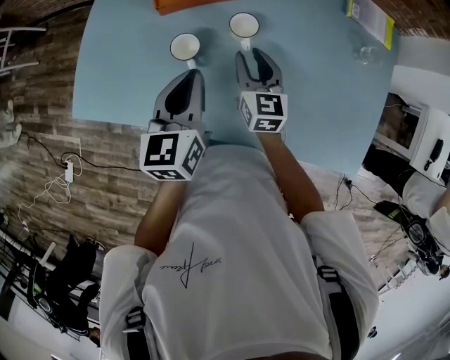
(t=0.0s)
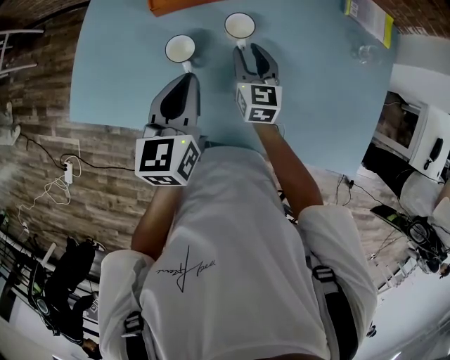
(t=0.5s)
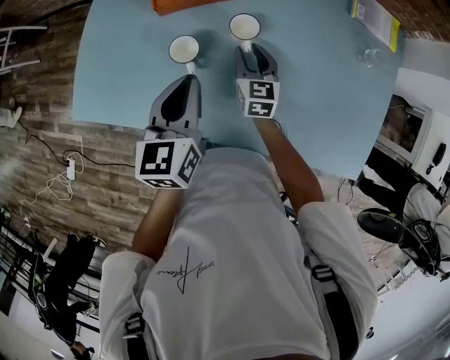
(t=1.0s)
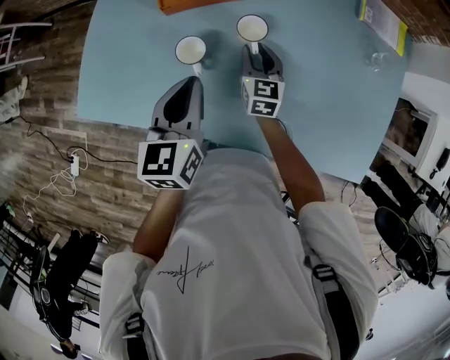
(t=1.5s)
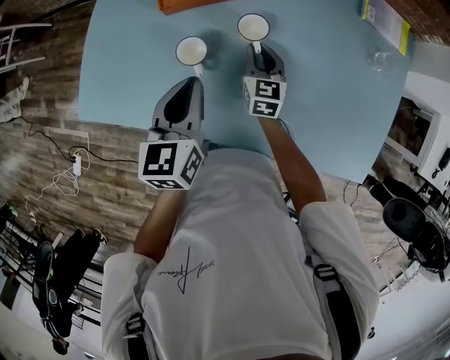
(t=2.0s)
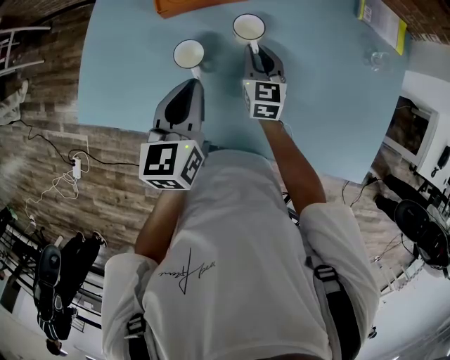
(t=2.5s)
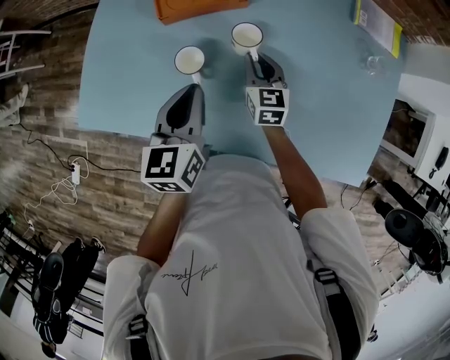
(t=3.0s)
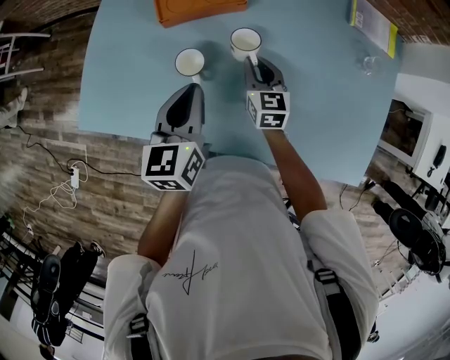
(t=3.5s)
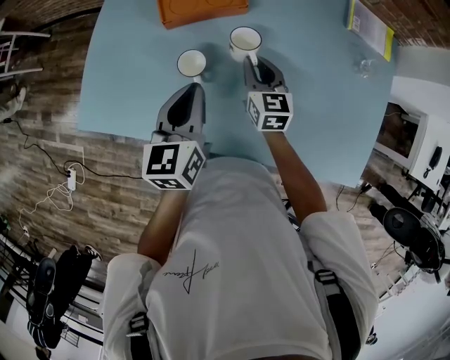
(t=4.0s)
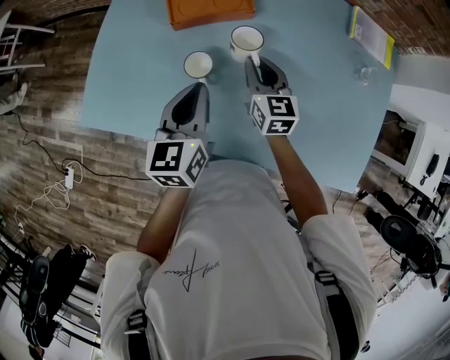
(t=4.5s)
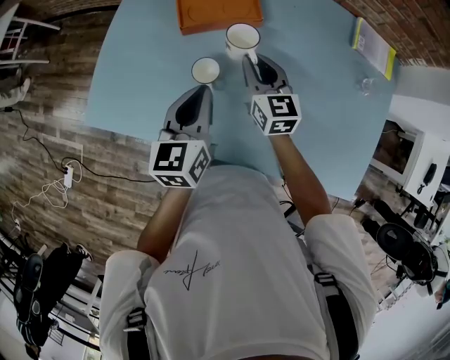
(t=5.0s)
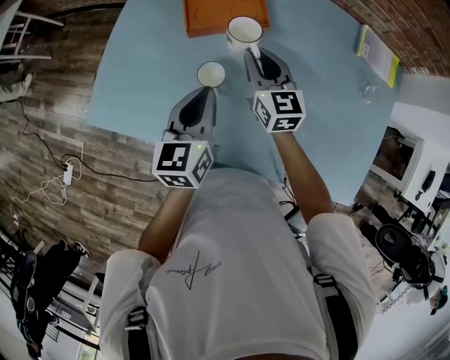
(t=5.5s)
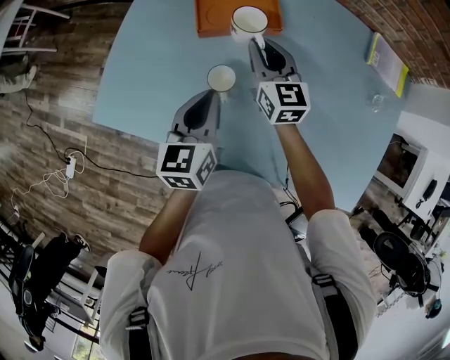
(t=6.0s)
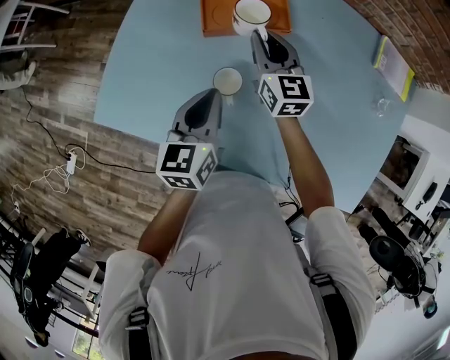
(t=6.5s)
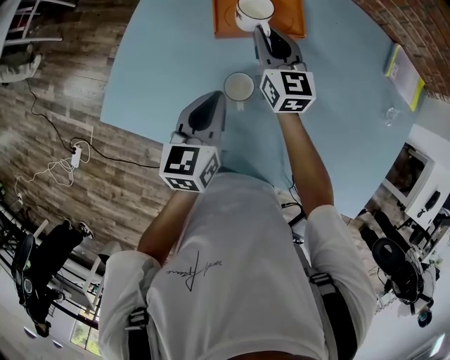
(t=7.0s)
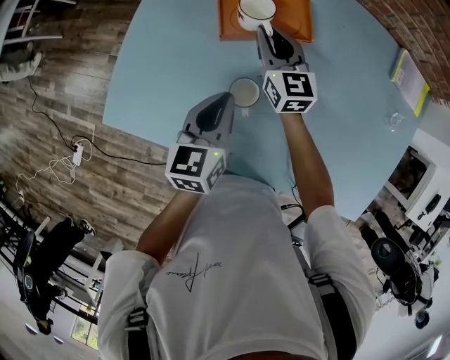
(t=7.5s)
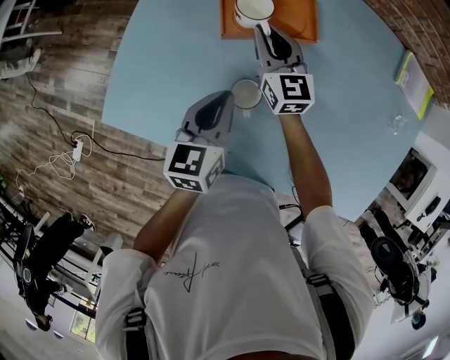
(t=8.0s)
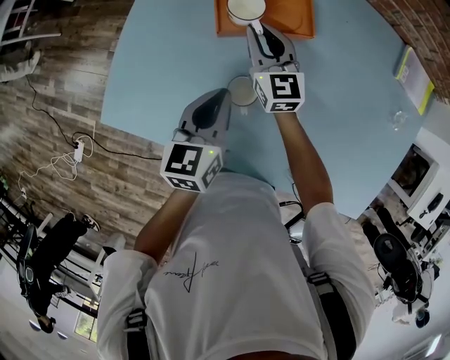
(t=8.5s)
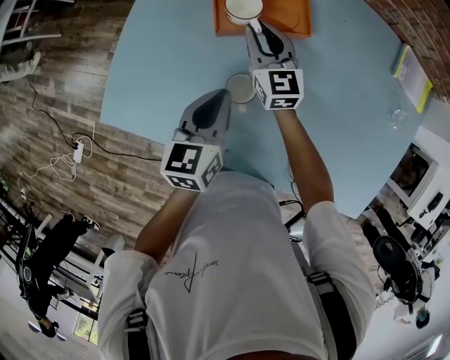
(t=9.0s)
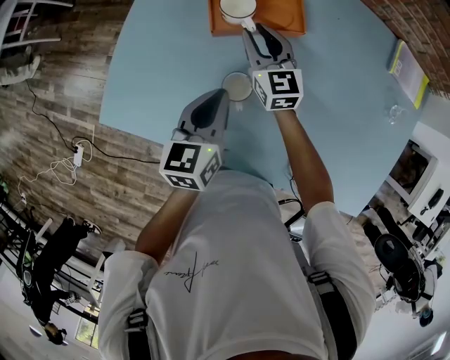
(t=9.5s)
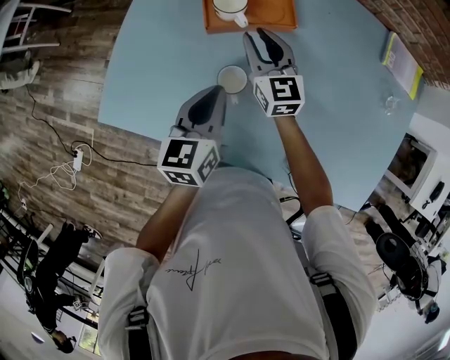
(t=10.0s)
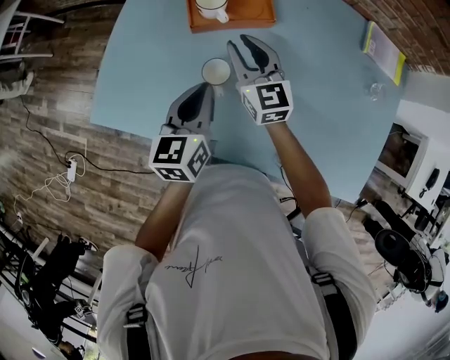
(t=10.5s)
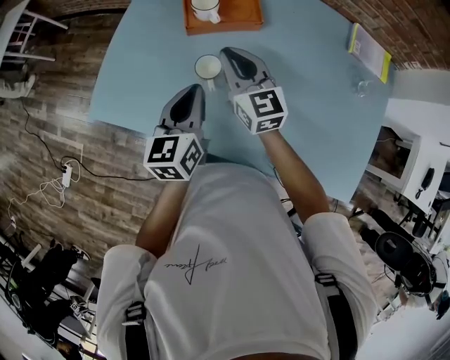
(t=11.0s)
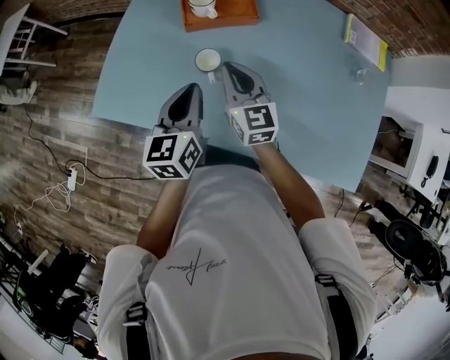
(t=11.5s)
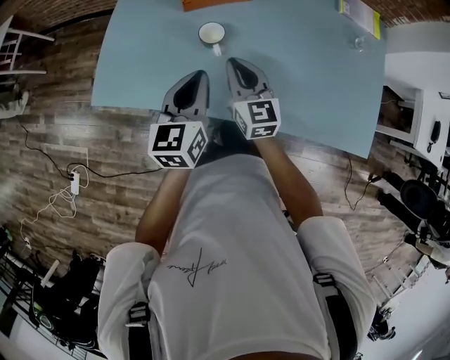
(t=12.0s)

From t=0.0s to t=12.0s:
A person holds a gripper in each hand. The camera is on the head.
From t=0.0s to t=2.0s: The right gripper is displaced downward by roughly 5 cm.
From t=2.0s to t=4.0s: The right gripper goes roughly 5 cm upward.
From t=4.0s to t=6.0s: The right gripper shifts roughly 15 cm forward, to the left and upward.
From t=6.0s to t=8.0s: The right gripper is displaced forward and to the left by some 10 cm, while the left gripper ends up roughly 5 cm from where it was.
From t=8.0s to t=10.0s: The right gripper shifts by roughly 5 cm.
From t=10.0s to t=12.0s: The left gripper heads backward, covering approximately 10 cm; the right gripper travels backward by some 20 cm.

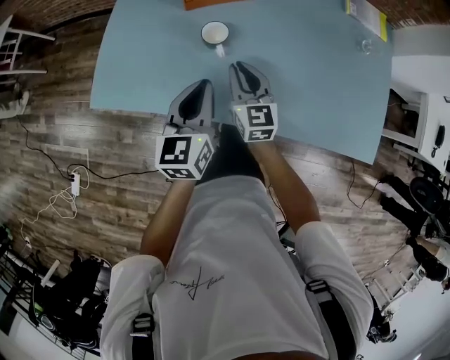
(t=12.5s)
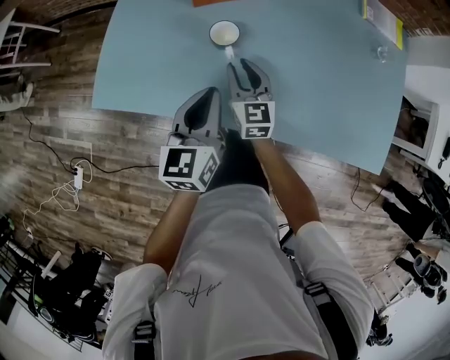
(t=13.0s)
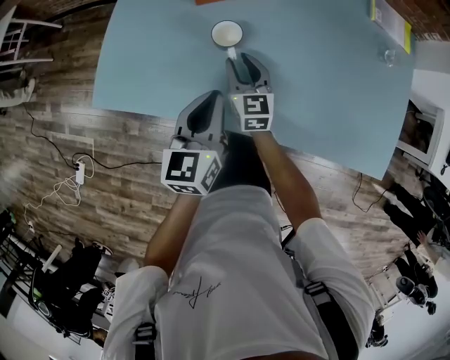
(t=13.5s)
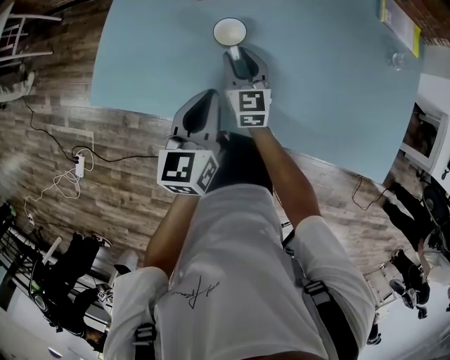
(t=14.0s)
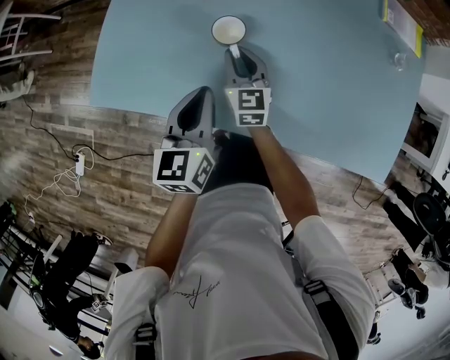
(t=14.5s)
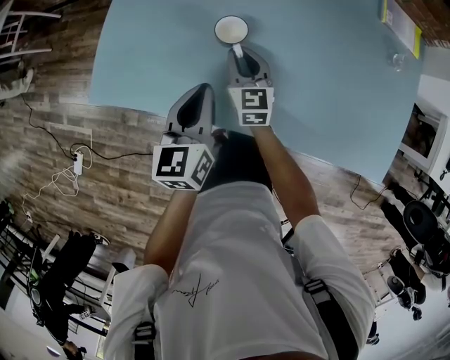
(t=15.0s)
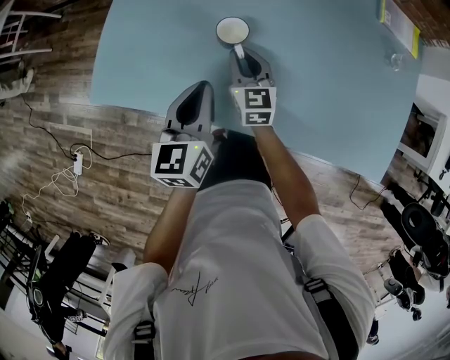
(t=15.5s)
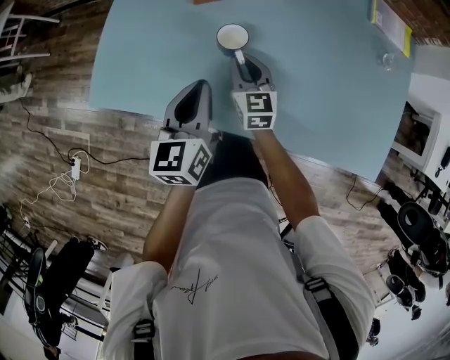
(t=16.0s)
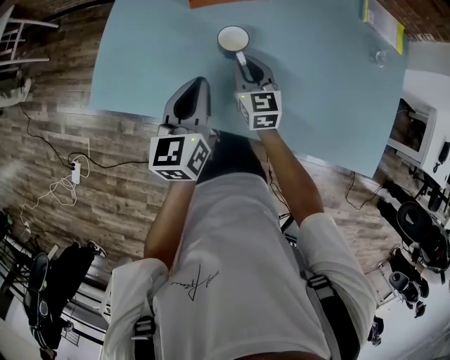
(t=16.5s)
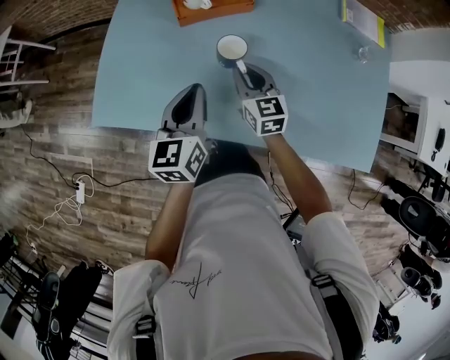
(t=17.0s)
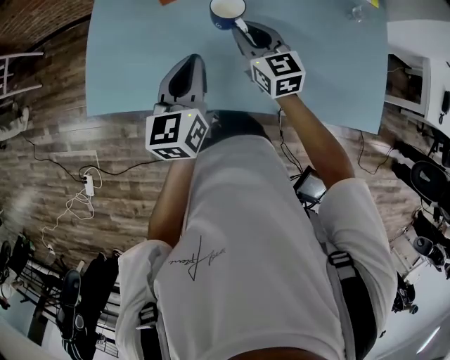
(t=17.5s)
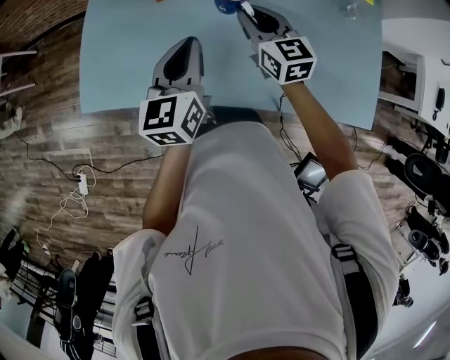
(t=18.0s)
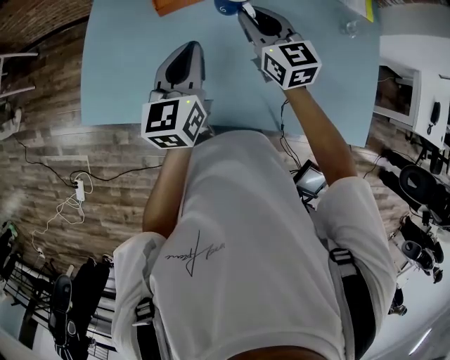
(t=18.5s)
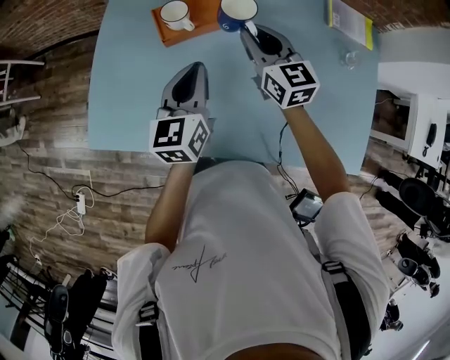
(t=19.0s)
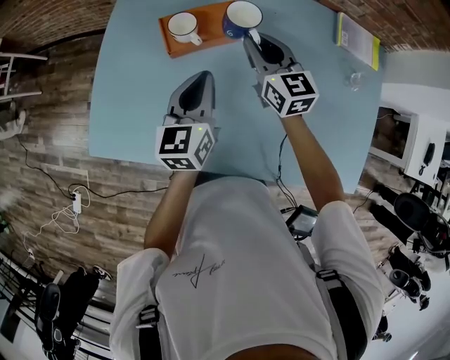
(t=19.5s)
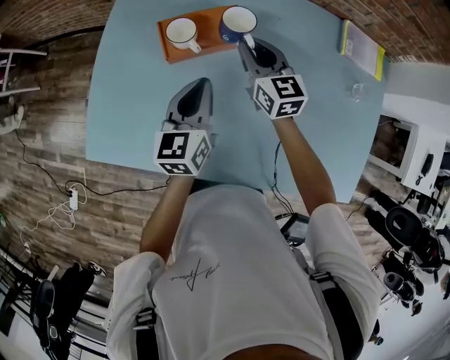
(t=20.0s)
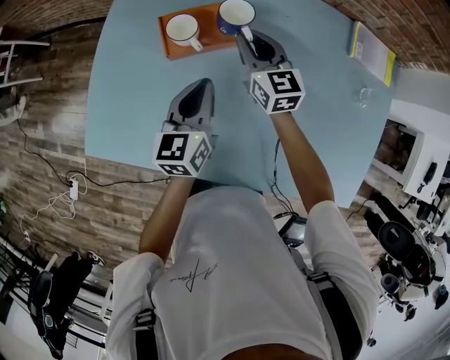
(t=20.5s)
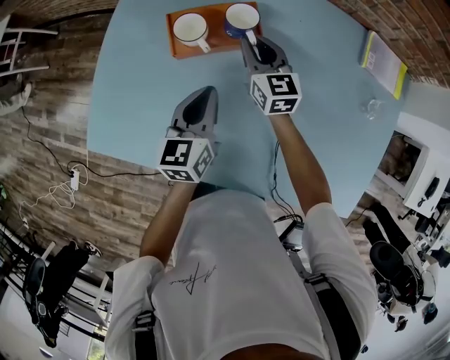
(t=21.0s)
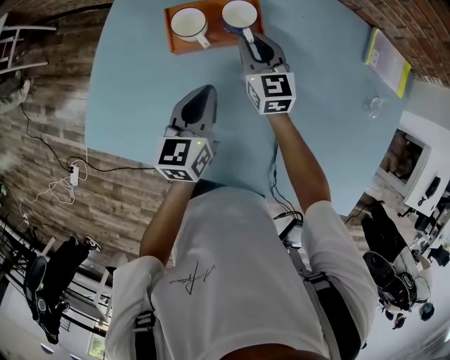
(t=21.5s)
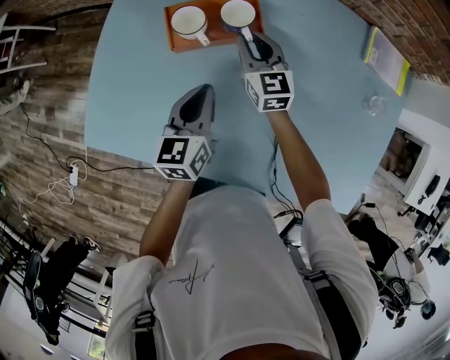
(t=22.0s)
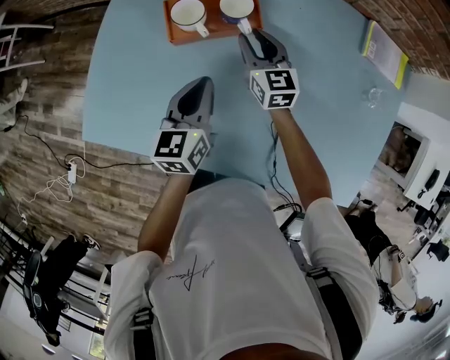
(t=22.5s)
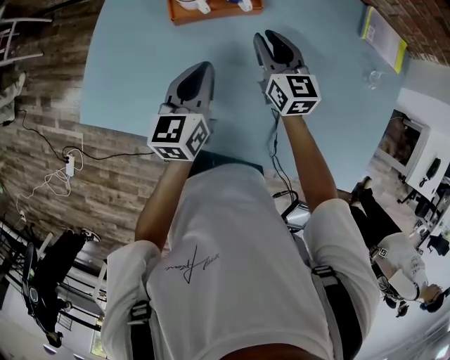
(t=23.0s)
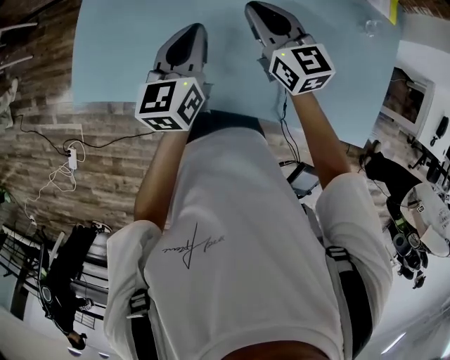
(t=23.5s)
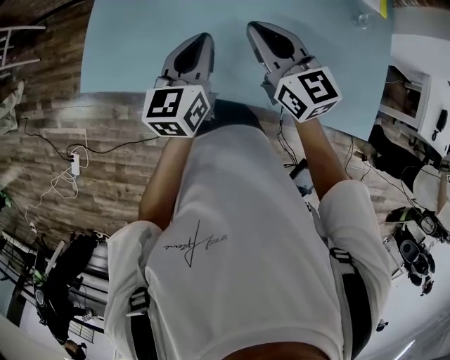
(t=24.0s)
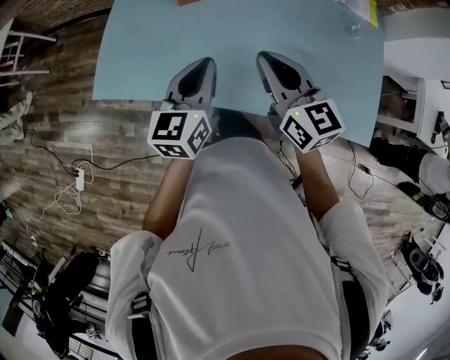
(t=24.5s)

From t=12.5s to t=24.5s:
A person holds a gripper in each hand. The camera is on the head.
From t=12.5s to t=14.5s: The right gripper moves downward and forward, some 10 cm.
From t=14.5s to t=16.5s: The right gripper ends up about 5 cm from where it was.
From t=16.5s to t=18.5s: The right gripper travels upward, to the right and forward by about 15 cm. Meanwhile the left gripper goes approximately 10 cm forward and upward.
From t=18.5s to t=20.5s: The left gripper heads forward and downward, covering some 10 cm. Meanwhile the right gripper travels forward by about 15 cm.
From t=20.5s to t=22.5s: The right gripper is displaced downward by approximately 5 cm.
From t=22.5s to t=24.5s: The left gripper shifts some 20 cm backward and upward. The right gripper goes about 35 cm backward and upward.

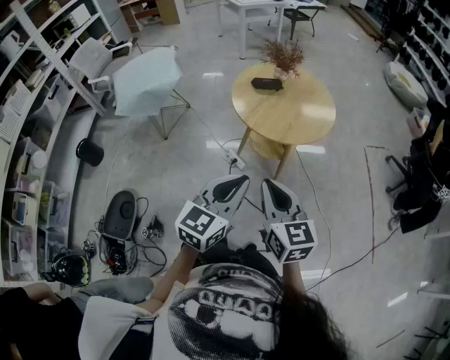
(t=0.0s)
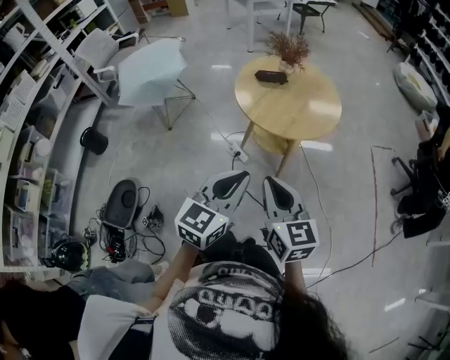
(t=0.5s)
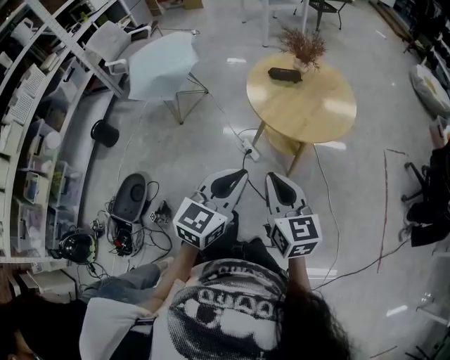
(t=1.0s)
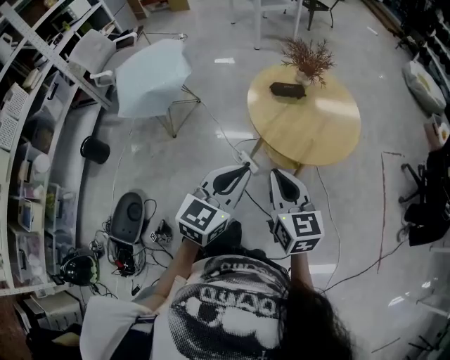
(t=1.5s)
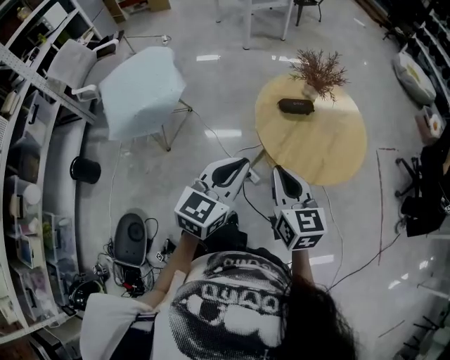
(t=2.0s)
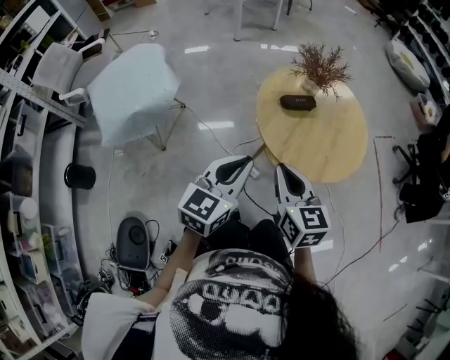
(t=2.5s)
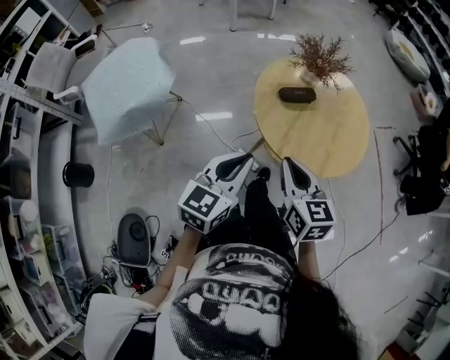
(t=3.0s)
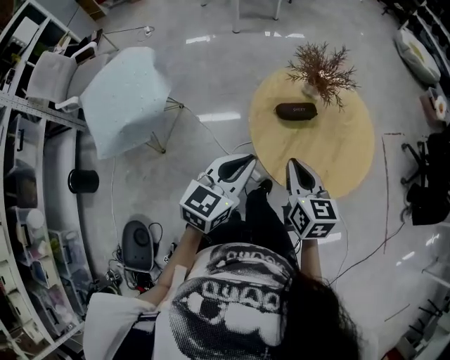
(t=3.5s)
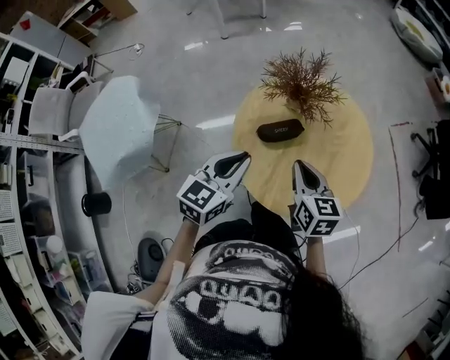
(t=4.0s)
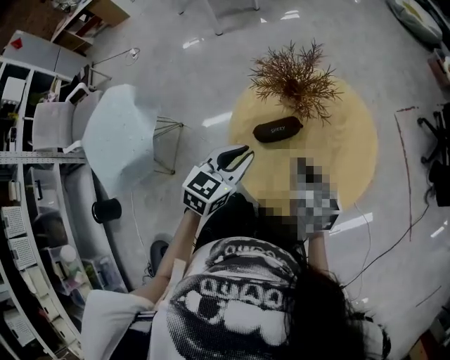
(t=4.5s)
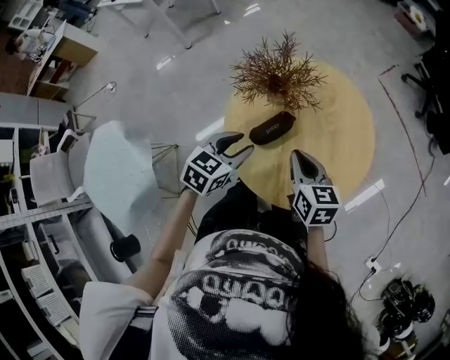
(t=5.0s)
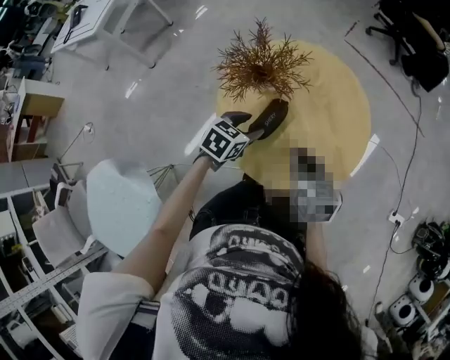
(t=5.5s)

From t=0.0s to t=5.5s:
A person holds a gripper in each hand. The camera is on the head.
From t=0.0s to t=2.0s: The grippers both shift forward and to the left by about 30 cm.
From t=2.0s to t=3.5s: The left gripper goes about 15 cm forward. Meanwhile the right gripper is displaced forward and downward by about 15 cm.
From t=3.5s to t=5.5s: The right gripper moves approximately 15 cm, and turns by about 40 degrees; the left gripper changes place by some 30 cm, tips its fingers downward by roughly 30 degrees, and opens up.
